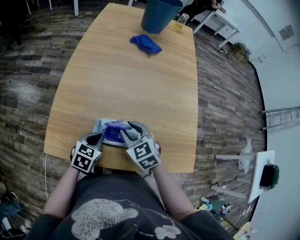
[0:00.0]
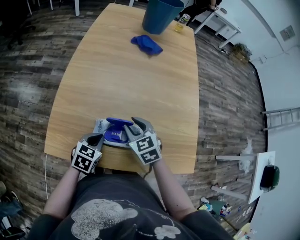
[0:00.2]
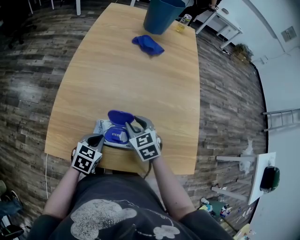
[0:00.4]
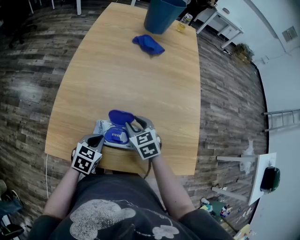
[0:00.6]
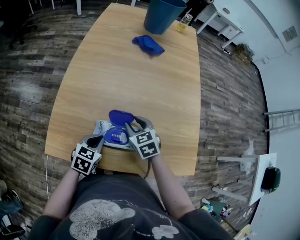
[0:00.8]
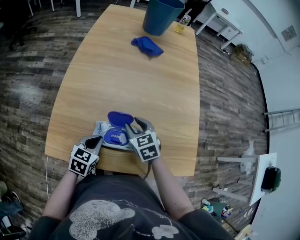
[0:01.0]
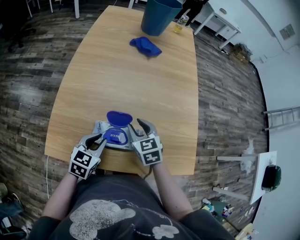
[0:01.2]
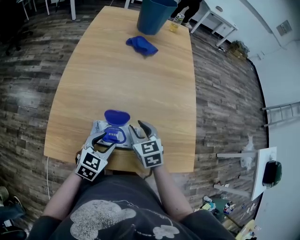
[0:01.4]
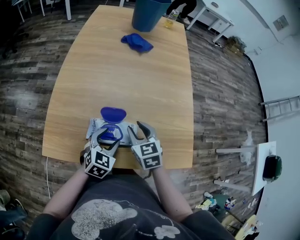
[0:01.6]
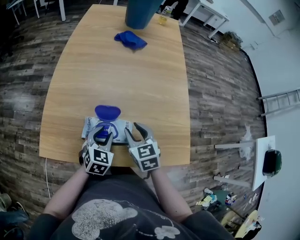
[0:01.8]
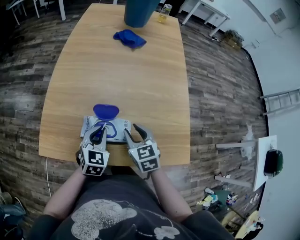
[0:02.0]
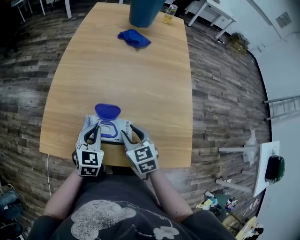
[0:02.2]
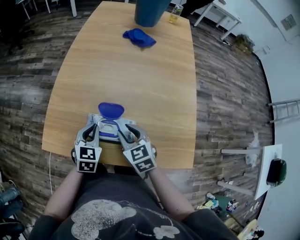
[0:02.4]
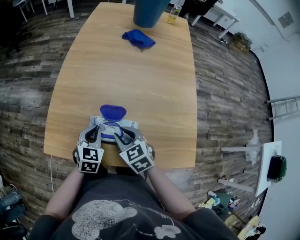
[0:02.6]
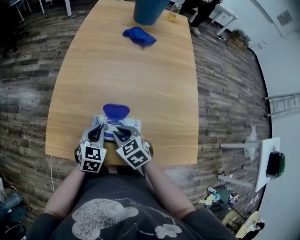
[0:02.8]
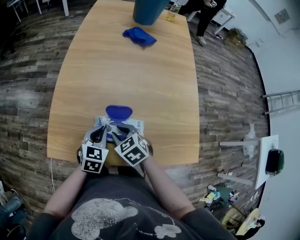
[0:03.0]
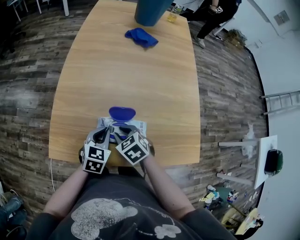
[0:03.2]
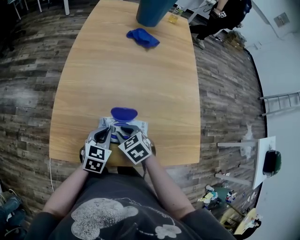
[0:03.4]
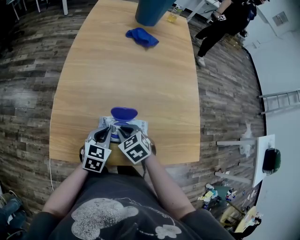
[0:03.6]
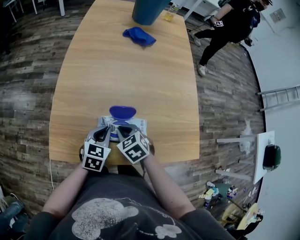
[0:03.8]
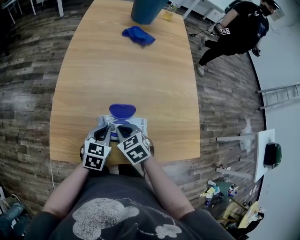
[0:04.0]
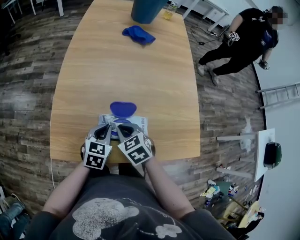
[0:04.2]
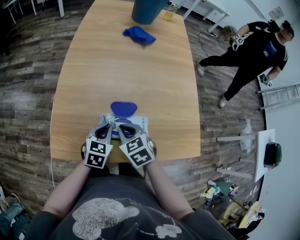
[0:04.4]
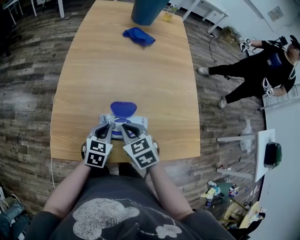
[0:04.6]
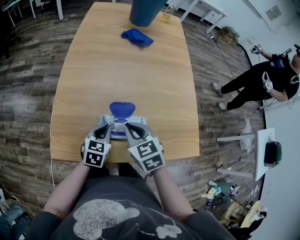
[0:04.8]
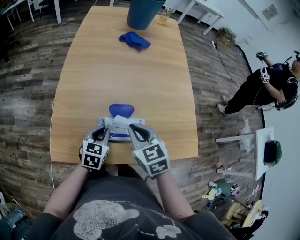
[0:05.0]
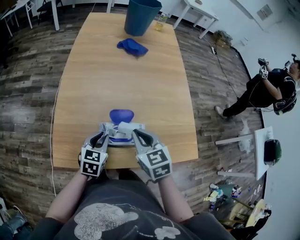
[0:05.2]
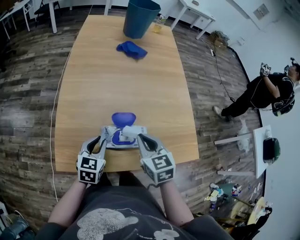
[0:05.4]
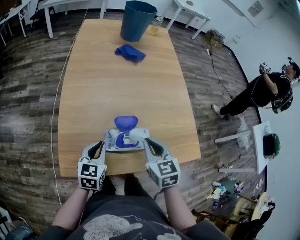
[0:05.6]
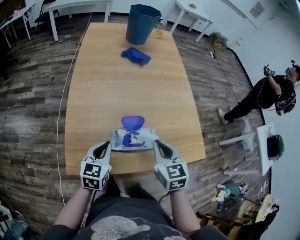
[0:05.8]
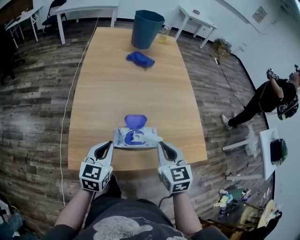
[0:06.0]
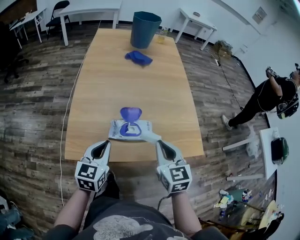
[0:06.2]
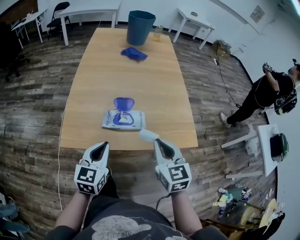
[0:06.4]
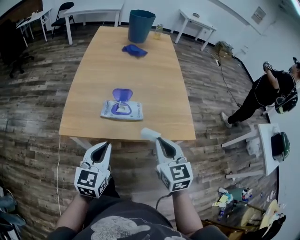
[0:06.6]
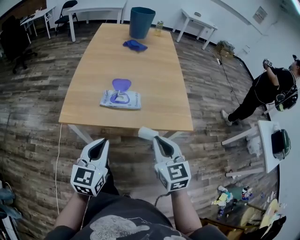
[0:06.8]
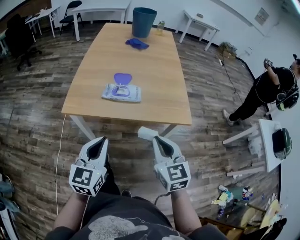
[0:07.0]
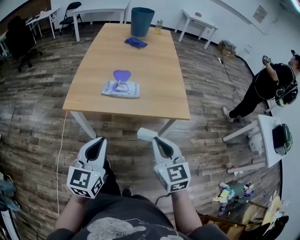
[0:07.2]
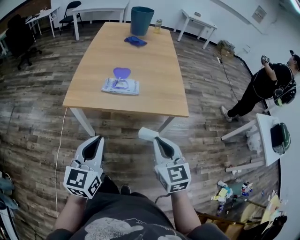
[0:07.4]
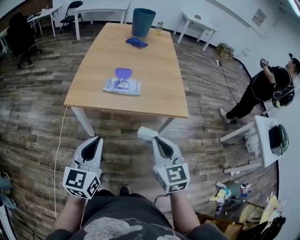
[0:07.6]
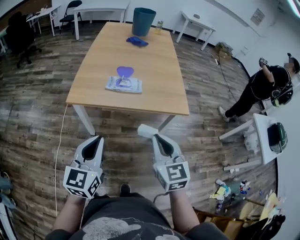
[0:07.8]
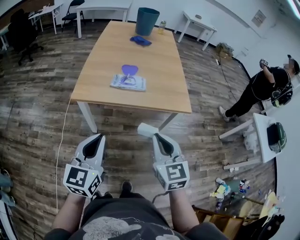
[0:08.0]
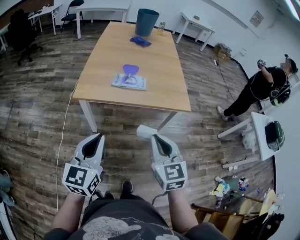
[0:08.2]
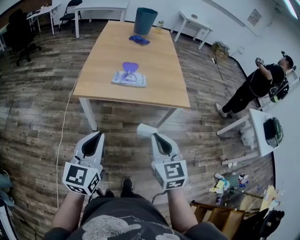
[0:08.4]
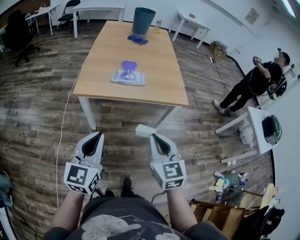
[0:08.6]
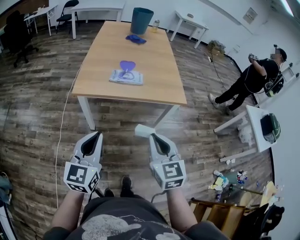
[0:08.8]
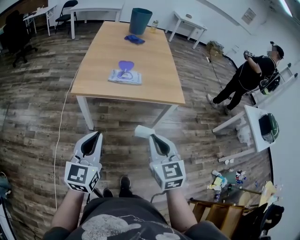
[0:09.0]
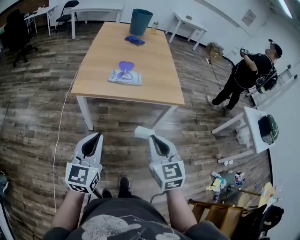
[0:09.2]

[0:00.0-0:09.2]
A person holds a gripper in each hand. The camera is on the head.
0:00.0 to 0:01.6: The grippers both shift to the right by some 5 cm. The left gripper opens up.
0:01.6 to 0:03.0: The right gripper goes some 10 cm to the left, and swivels about 30 degrees, while the left gripper is displaced to the left by approximately 5 cm, and closes.
0:03.0 to 0:04.6: The right gripper is displaced upward by some 5 cm.
0:04.6 to 0:06.2: The left gripper is displaced upward and backward by some 15 cm. The right gripper moves upward, to the right and backward, approximately 15 cm, and turns by roughly 30 degrees.
0:06.2 to 0:07.6: Both grippers travel together backward, approximately 25 cm.
0:07.6 to 0:09.2: The right gripper goes approximately 10 cm backward and to the left; the left gripper is displaced backward by approximately 10 cm.

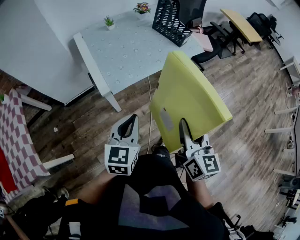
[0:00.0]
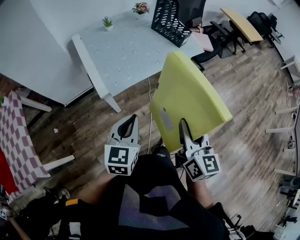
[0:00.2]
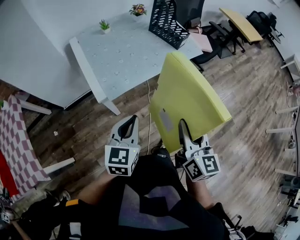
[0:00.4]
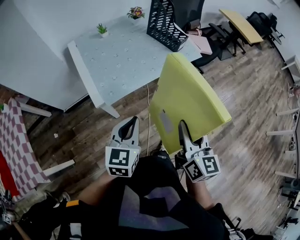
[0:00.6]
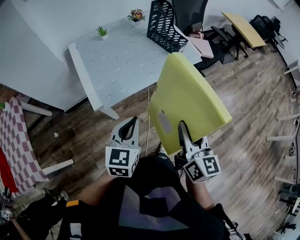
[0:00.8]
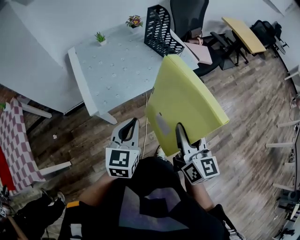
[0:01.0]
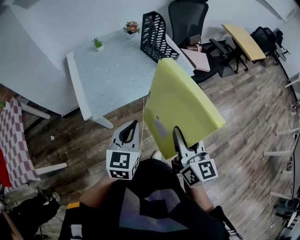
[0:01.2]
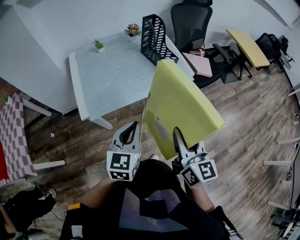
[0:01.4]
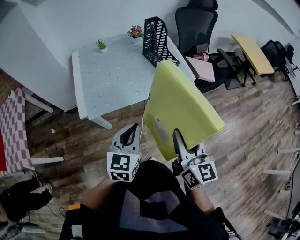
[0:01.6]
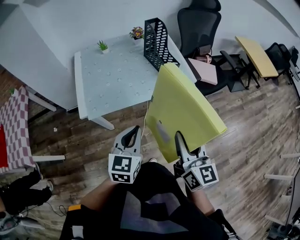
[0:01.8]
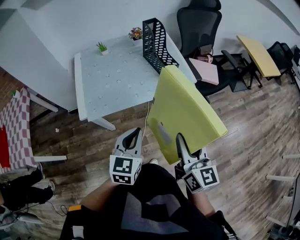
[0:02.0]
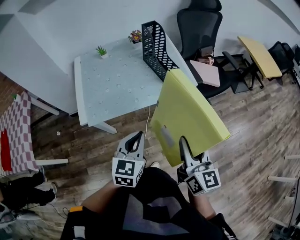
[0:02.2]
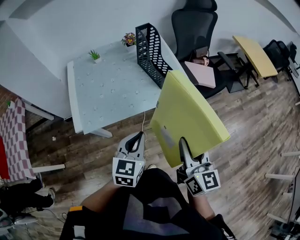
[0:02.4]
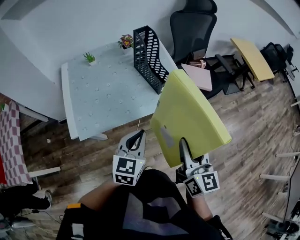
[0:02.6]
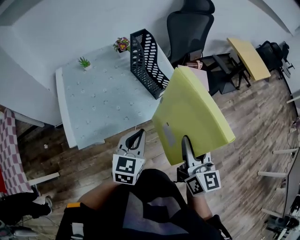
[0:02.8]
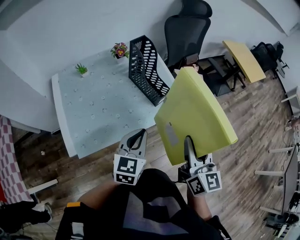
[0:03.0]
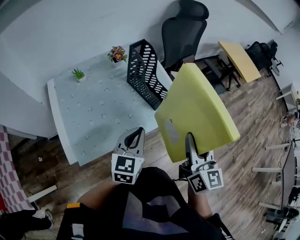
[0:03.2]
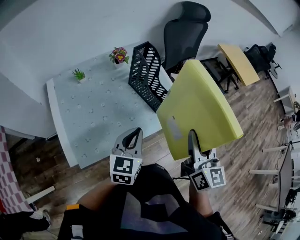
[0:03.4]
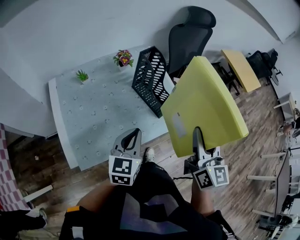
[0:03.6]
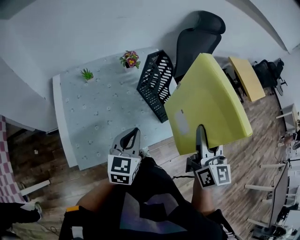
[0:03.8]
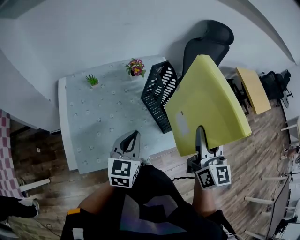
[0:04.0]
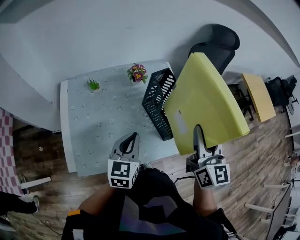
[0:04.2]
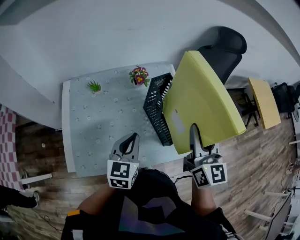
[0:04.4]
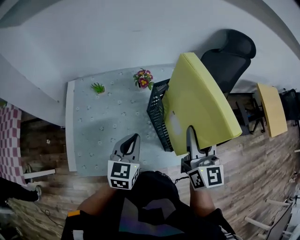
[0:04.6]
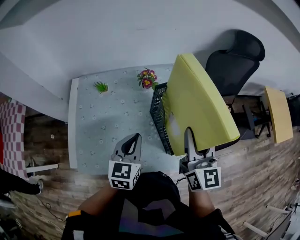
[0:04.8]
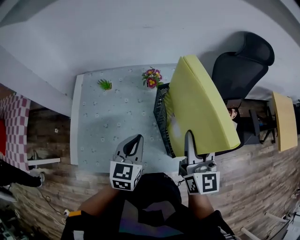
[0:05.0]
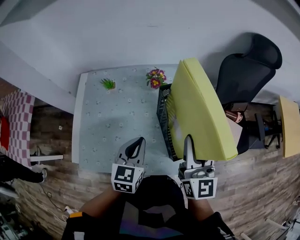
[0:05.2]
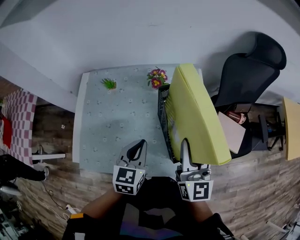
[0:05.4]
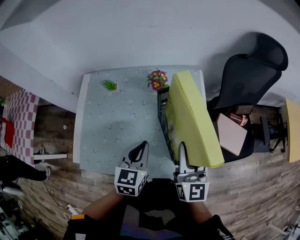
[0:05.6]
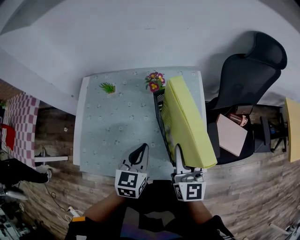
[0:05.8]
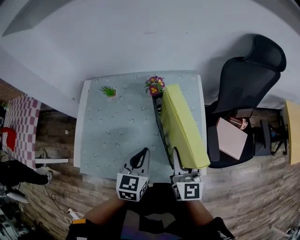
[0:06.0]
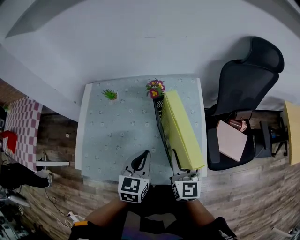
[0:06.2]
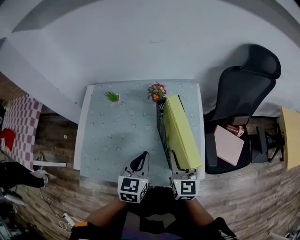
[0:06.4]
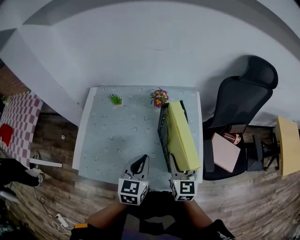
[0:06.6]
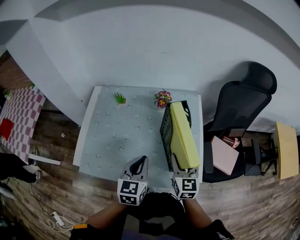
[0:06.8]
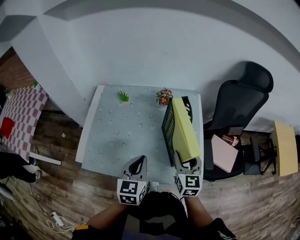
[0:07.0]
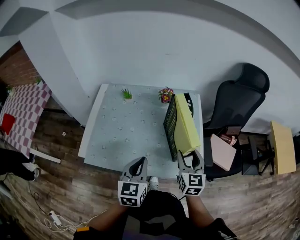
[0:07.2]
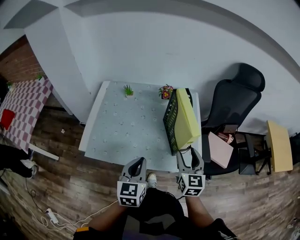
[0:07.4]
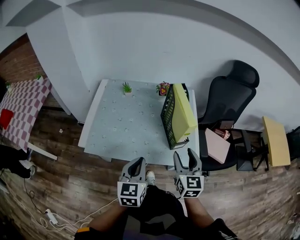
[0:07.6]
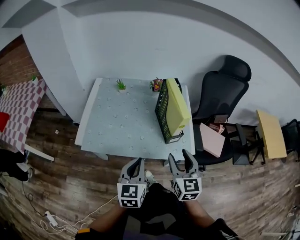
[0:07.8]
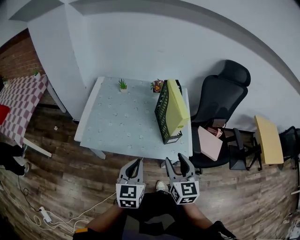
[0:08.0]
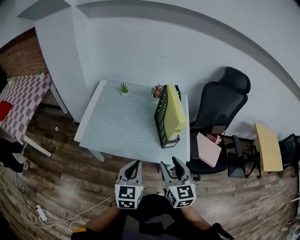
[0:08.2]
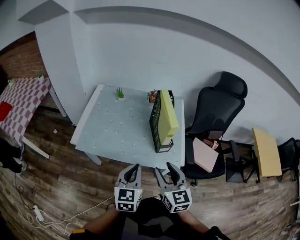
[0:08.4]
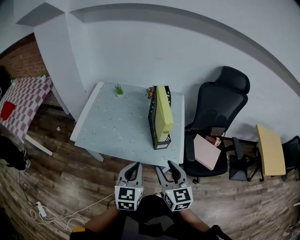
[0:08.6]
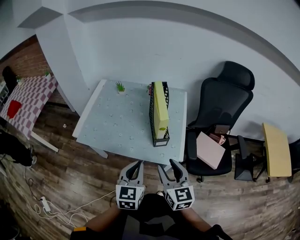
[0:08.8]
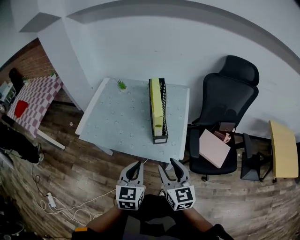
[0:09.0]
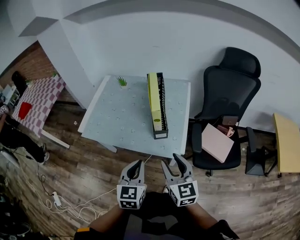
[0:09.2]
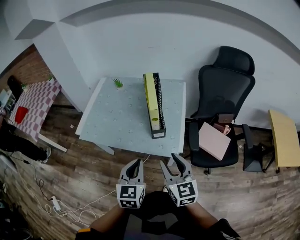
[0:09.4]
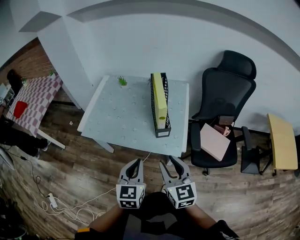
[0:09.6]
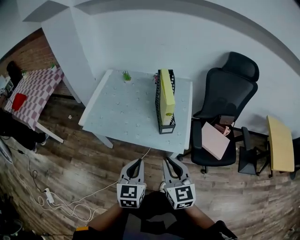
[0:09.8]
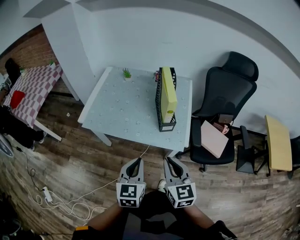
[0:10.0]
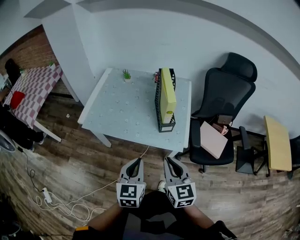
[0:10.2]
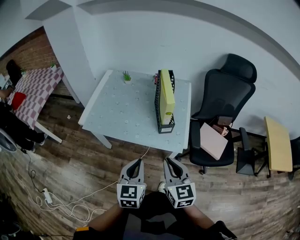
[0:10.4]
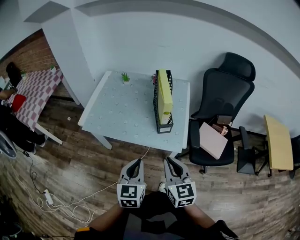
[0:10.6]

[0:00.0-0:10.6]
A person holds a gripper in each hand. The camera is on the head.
0:00.0 to 0:01.6: The grippers both shift to the right and forward by about 25 cm.
0:01.6 to 0:03.0: The grippers both shift forward by approximately 20 cm.
0:03.0 to 0:04.6: The left gripper shifts about 20 cm forward and to the left, and rotates approximately 20 degrees. The right gripper goes about 30 cm forward.
0:04.6 to 0:06.0: The left gripper shifts about 5 cm downward, while the right gripper moves downward, about 15 cm.
0:06.0 to 0:07.6: Both grippers move backward, about 20 cm.
0:07.6 to 0:09.0: The right gripper is displaced backward and to the right by approximately 10 cm, and rotates approximately 20 degrees. The left gripper goes approximately 15 cm to the right and backward.
0:09.0 to 0:10.6: The two grippers go some 5 cm backward. The right gripper closes.

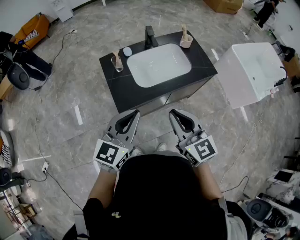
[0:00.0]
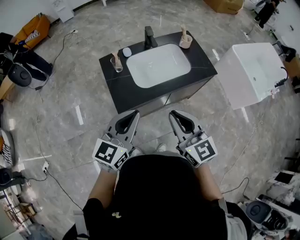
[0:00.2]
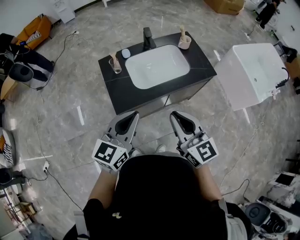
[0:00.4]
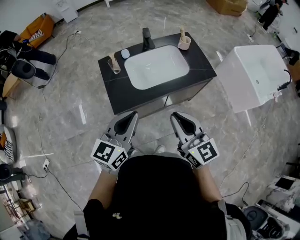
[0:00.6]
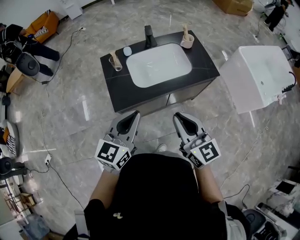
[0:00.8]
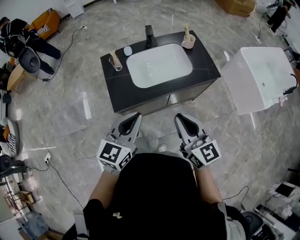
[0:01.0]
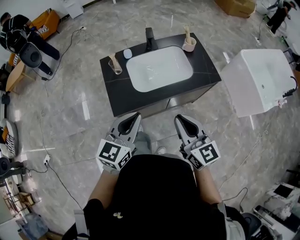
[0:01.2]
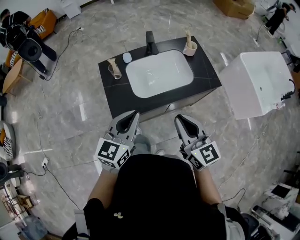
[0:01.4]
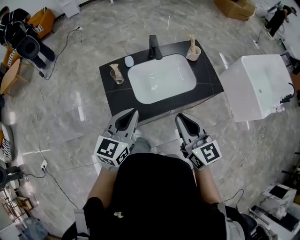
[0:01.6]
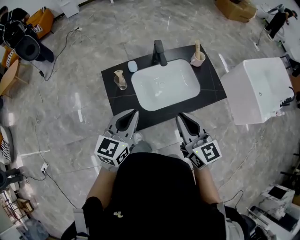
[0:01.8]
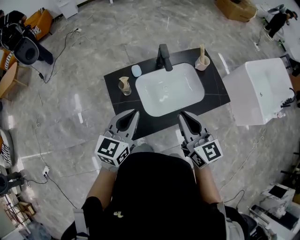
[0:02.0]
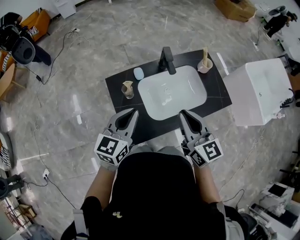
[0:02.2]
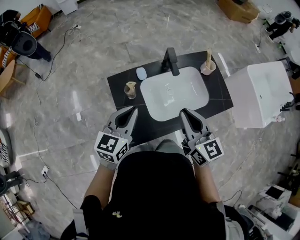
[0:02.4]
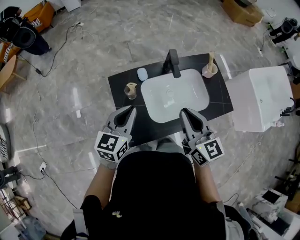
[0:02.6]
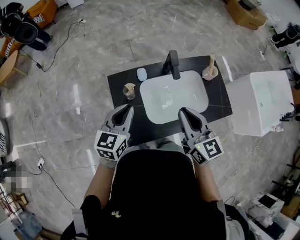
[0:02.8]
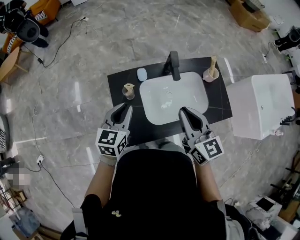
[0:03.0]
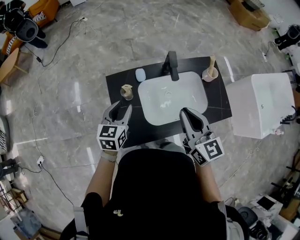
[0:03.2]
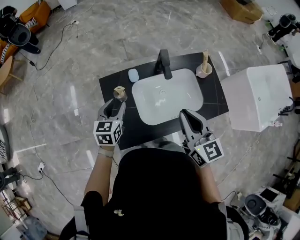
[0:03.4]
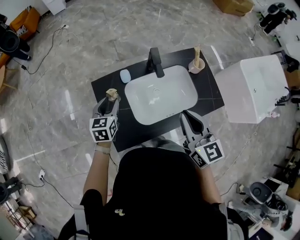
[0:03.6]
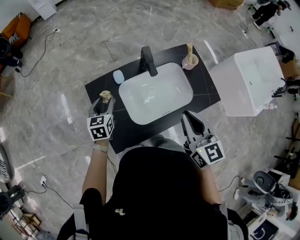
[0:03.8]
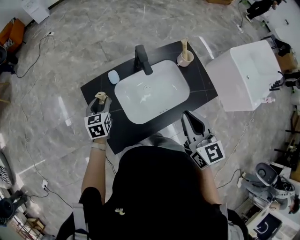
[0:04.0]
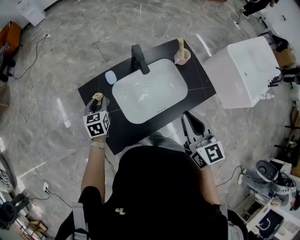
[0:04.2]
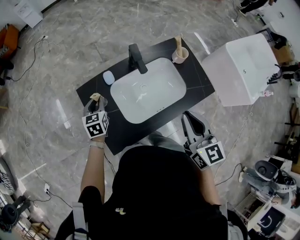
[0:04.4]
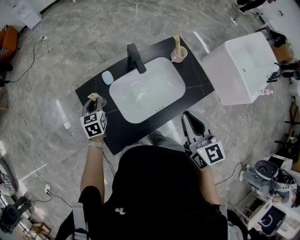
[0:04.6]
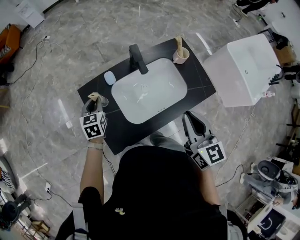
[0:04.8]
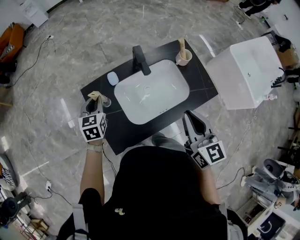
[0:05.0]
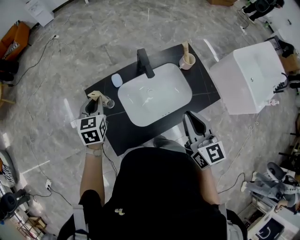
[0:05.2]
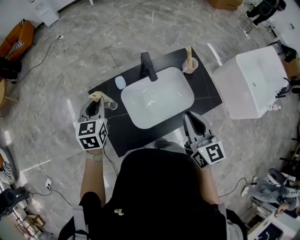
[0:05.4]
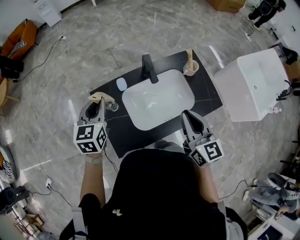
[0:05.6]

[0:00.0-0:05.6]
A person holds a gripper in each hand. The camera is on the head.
0:00.0 to 0:01.4: The right gripper moves to the right and forward, approximately 10 cm, while the left gripper is displaced forward by about 10 cm.
0:01.4 to 0:02.8: The two grippers go some 25 cm forward and to the left.
0:02.8 to 0:04.2: The right gripper goes about 10 cm to the right. Meanwhile the left gripper shifts some 20 cm downward and forward, rotates some 20 degrees, and opens its fingers.
0:04.2 to 0:05.6: The left gripper shifts some 15 cm upward.
